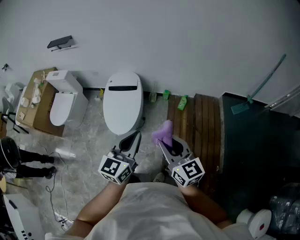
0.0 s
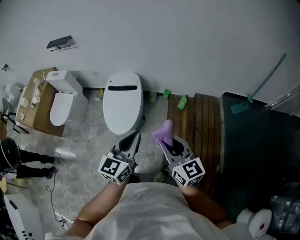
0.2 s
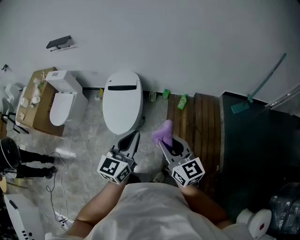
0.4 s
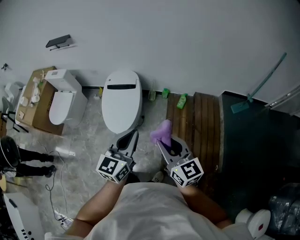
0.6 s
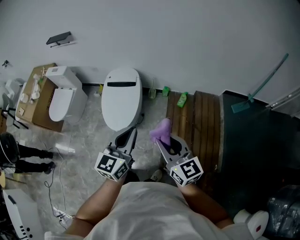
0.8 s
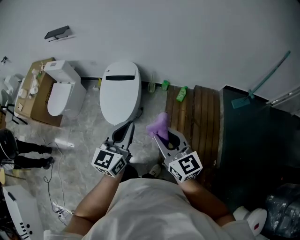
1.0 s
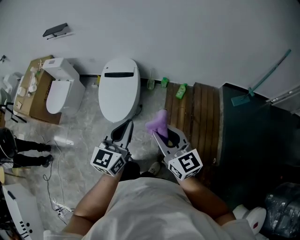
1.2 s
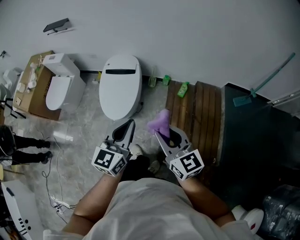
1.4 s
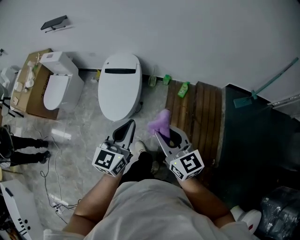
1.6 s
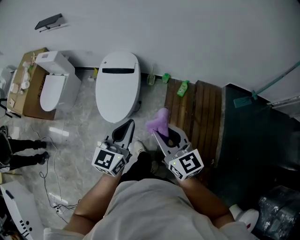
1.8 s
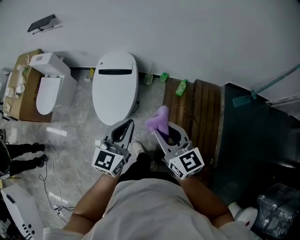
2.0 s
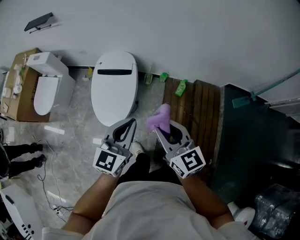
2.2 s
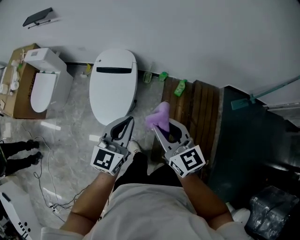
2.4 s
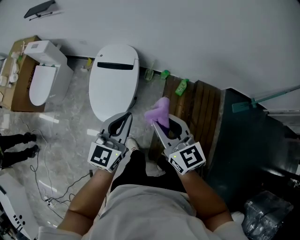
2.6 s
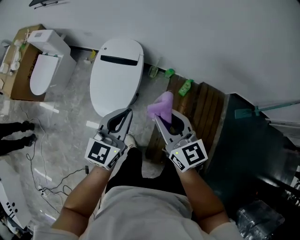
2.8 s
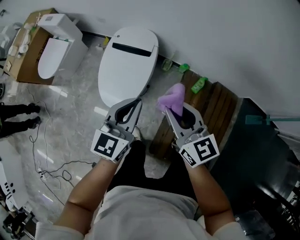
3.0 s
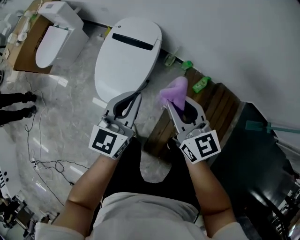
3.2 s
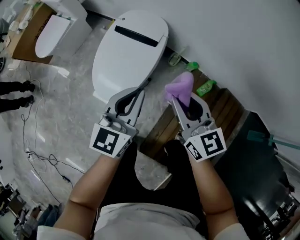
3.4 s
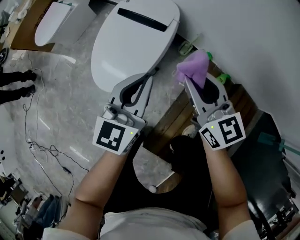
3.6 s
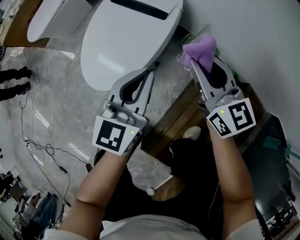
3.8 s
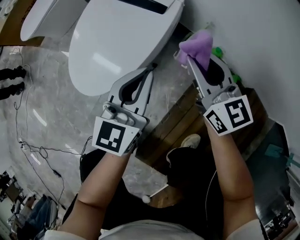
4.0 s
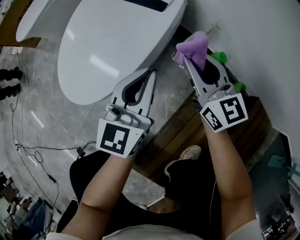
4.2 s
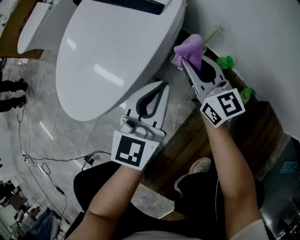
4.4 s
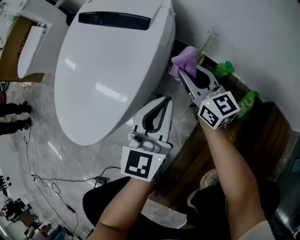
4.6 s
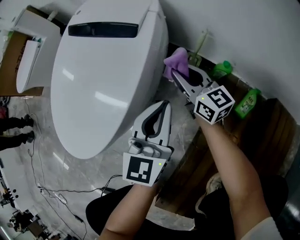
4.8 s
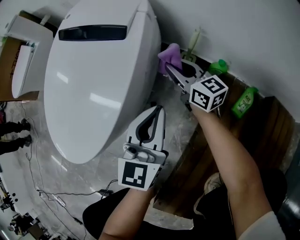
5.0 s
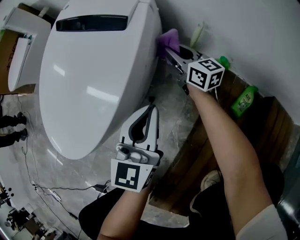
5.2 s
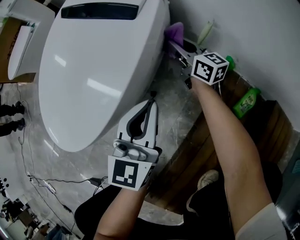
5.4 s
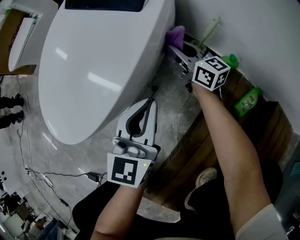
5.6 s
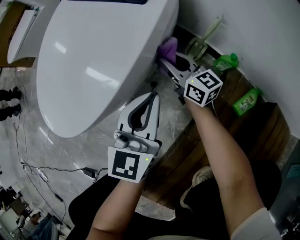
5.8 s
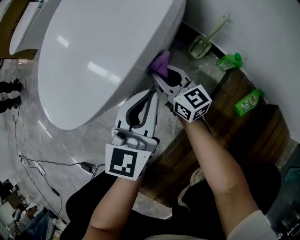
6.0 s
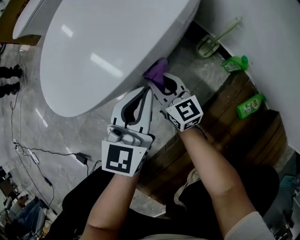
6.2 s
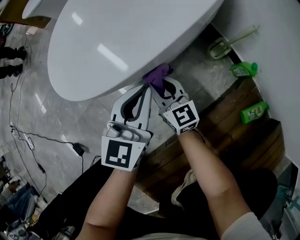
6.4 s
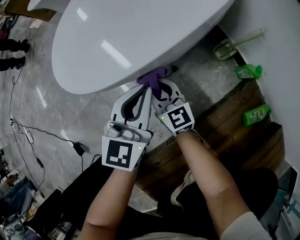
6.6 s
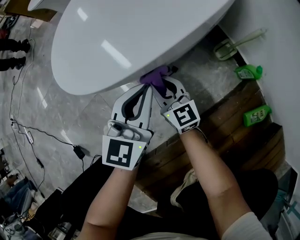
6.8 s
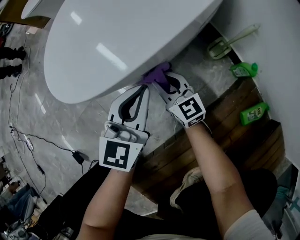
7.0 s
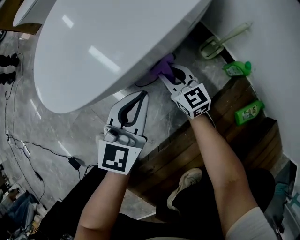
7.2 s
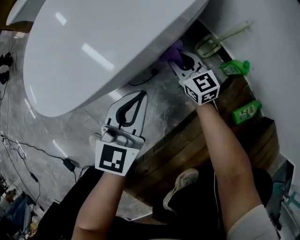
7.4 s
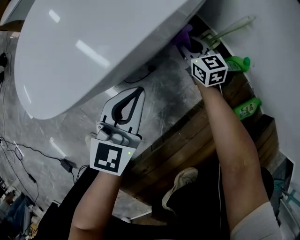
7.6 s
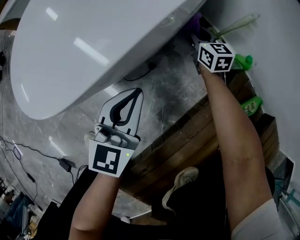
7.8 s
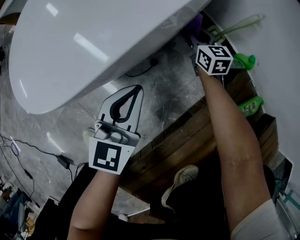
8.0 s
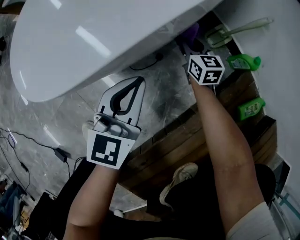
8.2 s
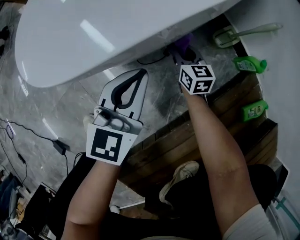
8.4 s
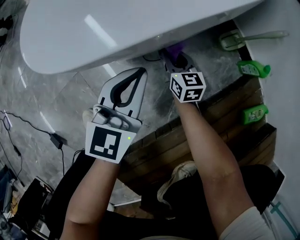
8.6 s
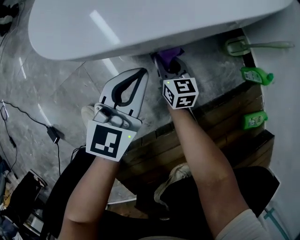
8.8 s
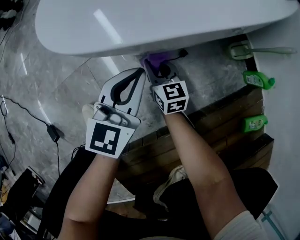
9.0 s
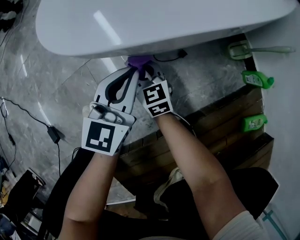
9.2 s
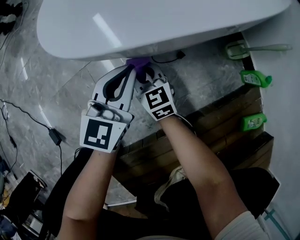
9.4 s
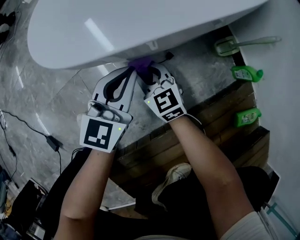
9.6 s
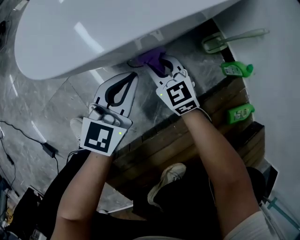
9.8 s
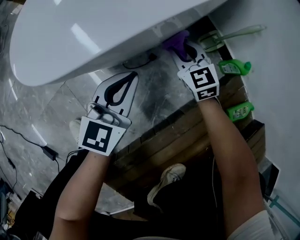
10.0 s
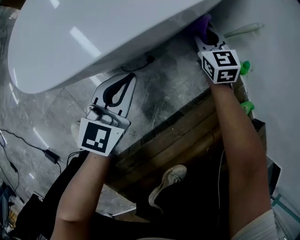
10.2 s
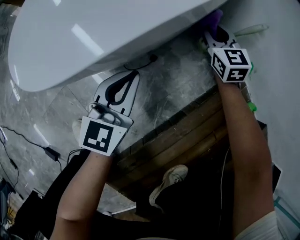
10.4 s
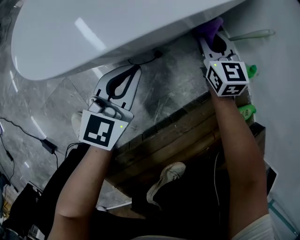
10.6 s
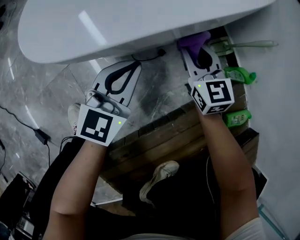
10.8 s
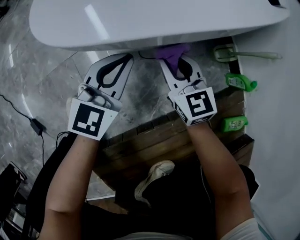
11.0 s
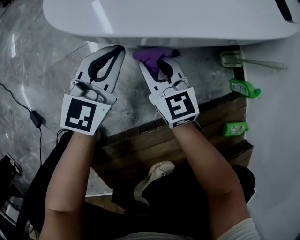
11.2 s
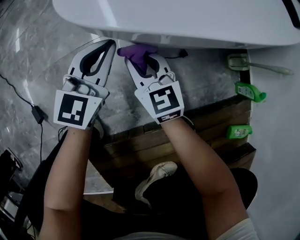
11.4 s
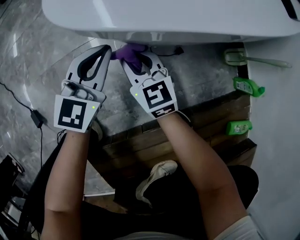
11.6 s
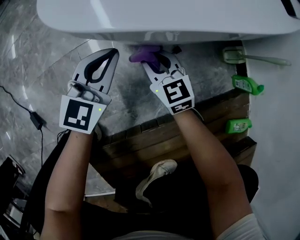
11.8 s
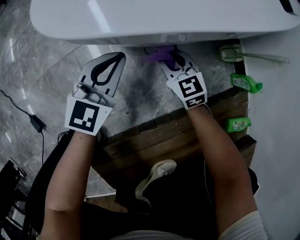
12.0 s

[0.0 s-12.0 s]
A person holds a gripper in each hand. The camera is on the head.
0.0 to 1.6 s: The left gripper moves about 5 cm.
1.6 to 3.0 s: The right gripper is displaced forward by about 20 cm. Meanwhile the left gripper heads forward and downward, covering about 20 cm.
3.0 to 4.4 s: The left gripper shifts about 40 cm downward, and rotates roughly 20 degrees. Meanwhile the right gripper travels downward and forward by some 50 cm.
4.4 to 6.0 s: The left gripper is displaced downward by about 10 cm. The right gripper travels downward and to the left by roughly 20 cm.
6.0 to 7.6 s: The left gripper goes about 10 cm downward, while the right gripper is displaced downward, to the right and forward by some 15 cm, and turns by about 20 degrees.
7.6 to 9.0 s: The right gripper moves to the left and backward, about 30 cm. Meanwhile the left gripper goes approximately 10 cm to the left.
9.0 to 10.4 s: The left gripper shifts approximately 10 cm to the right. The right gripper heads to the right, forward and upward, covering approximately 35 cm, and swivels approximately 30 degrees.
10.4 to 12.0 s: The right gripper shifts by roughly 30 cm, and rotates about 30 degrees.

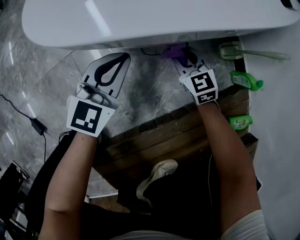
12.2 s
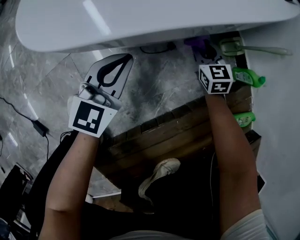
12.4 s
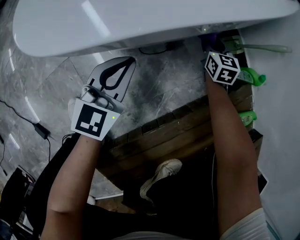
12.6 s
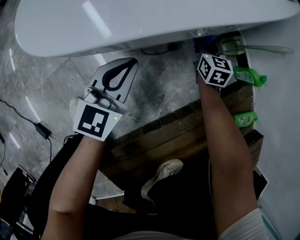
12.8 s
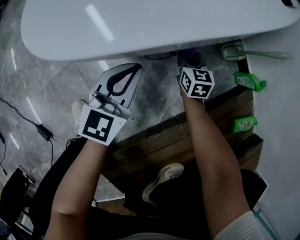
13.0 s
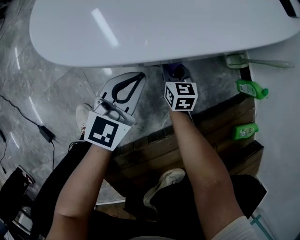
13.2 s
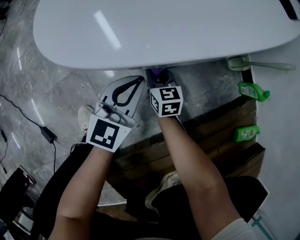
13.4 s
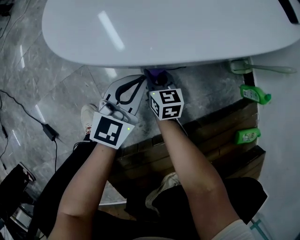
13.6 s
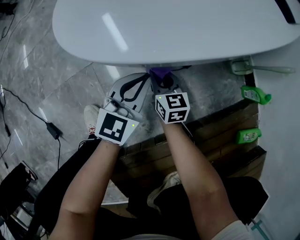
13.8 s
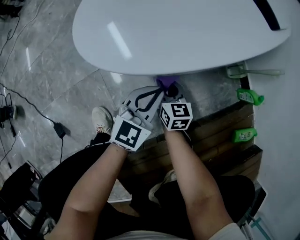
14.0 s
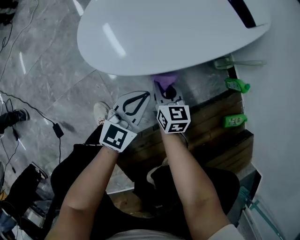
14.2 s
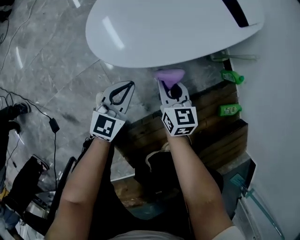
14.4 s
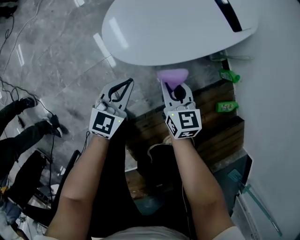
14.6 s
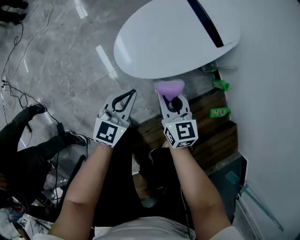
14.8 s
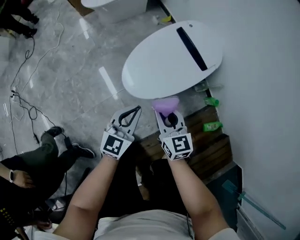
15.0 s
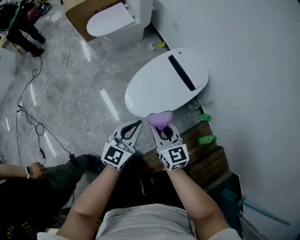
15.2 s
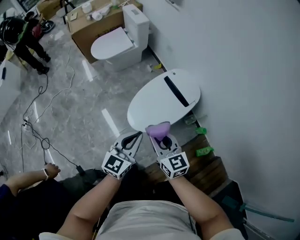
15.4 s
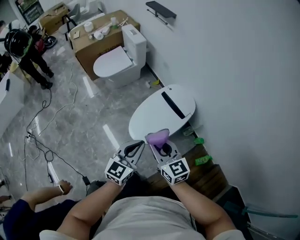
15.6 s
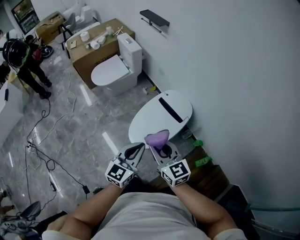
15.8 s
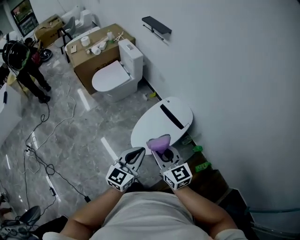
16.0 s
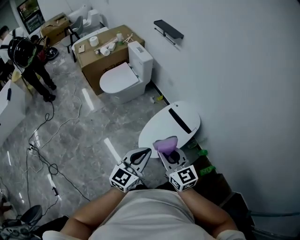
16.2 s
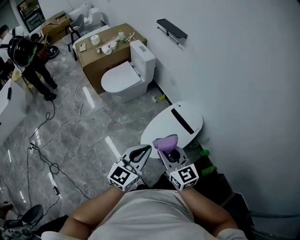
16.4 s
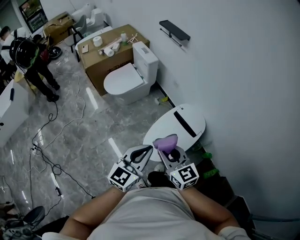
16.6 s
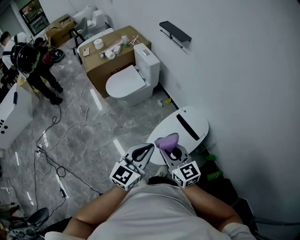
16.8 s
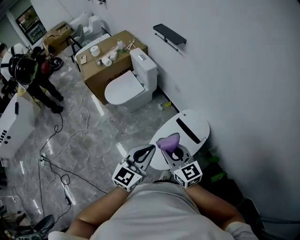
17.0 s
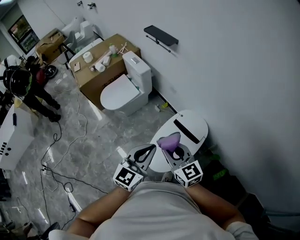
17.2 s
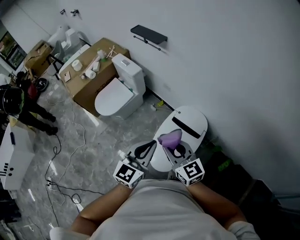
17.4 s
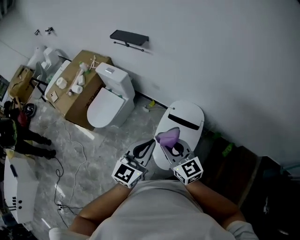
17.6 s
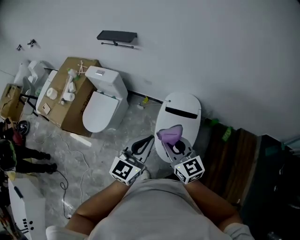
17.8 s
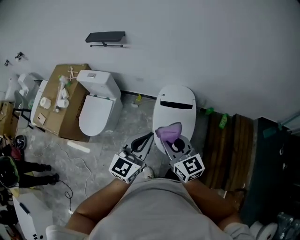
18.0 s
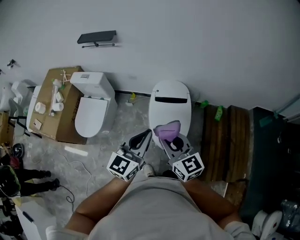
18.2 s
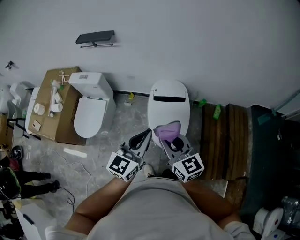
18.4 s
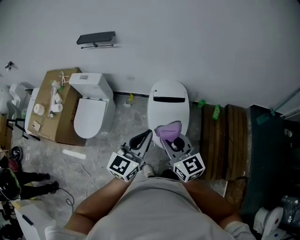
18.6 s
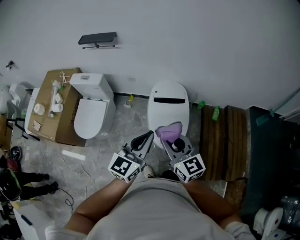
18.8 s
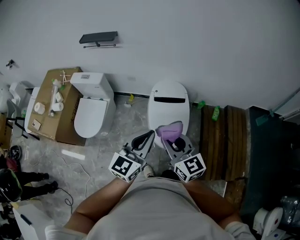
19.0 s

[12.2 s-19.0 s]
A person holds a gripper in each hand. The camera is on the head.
12.2 to 13.6 s: The right gripper heads to the left, covering roughly 10 cm, and turns by approximately 30 degrees.
13.6 to 15.0 s: Both grippers travel together upward, approximately 50 cm.
15.0 to 16.2 s: The two grippers go some 35 cm upward.
16.2 to 17.6 s: Both grippers travel together forward, roughly 20 cm. The right gripper rotates about 20 degrees. The left gripper changes its angle by approximately 20 degrees.
17.6 to 19.0 s: Both grippers move backward, some 10 cm. The left gripper changes its angle by roughly 20 degrees. Meanwhile the right gripper swivels some 30 degrees.

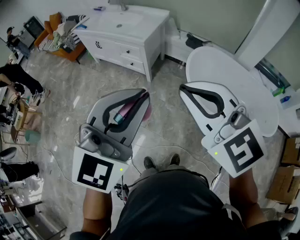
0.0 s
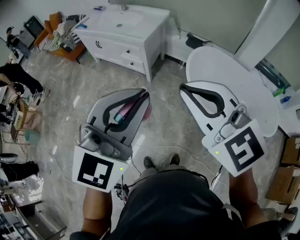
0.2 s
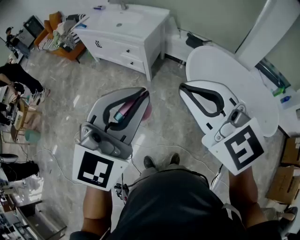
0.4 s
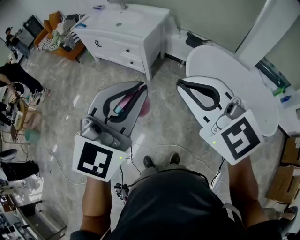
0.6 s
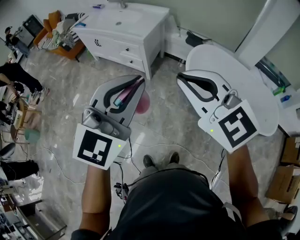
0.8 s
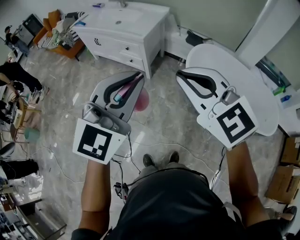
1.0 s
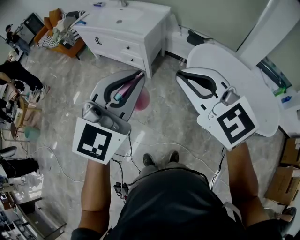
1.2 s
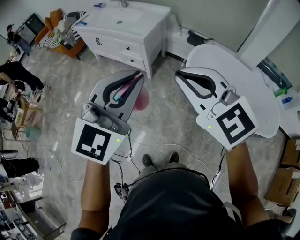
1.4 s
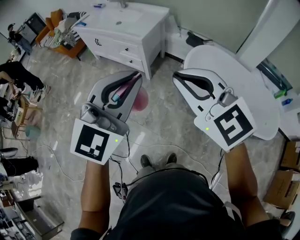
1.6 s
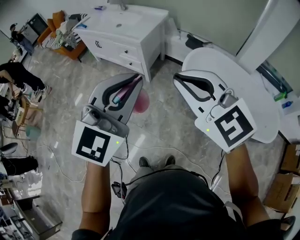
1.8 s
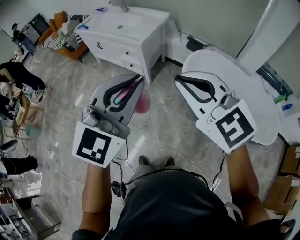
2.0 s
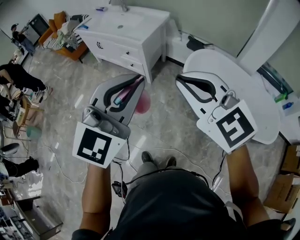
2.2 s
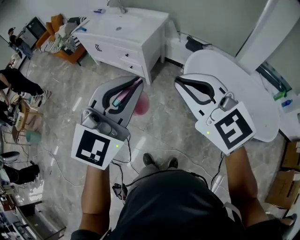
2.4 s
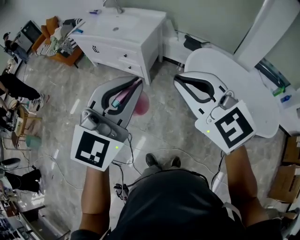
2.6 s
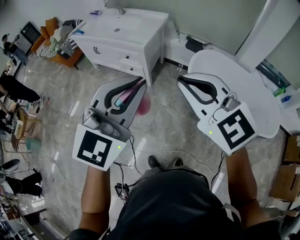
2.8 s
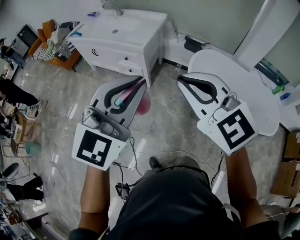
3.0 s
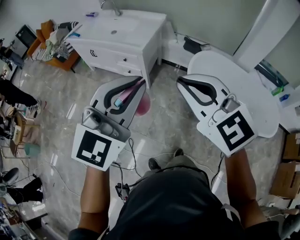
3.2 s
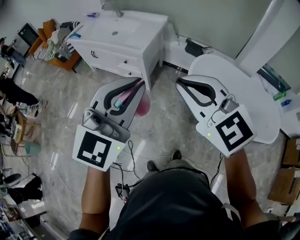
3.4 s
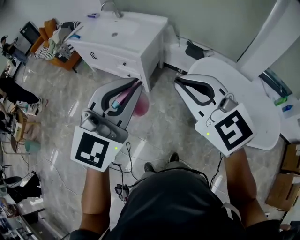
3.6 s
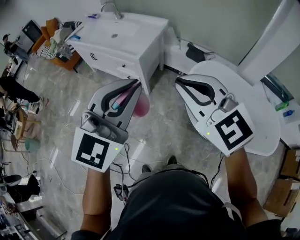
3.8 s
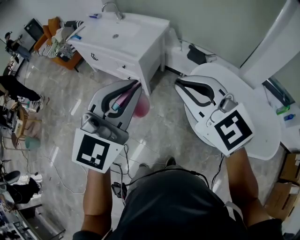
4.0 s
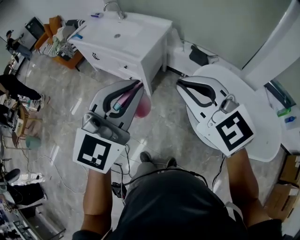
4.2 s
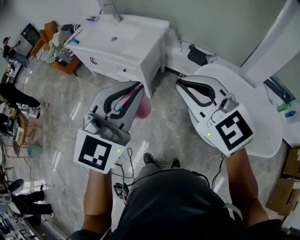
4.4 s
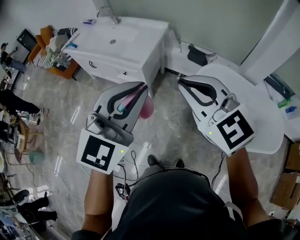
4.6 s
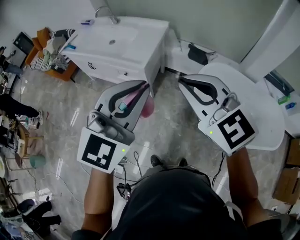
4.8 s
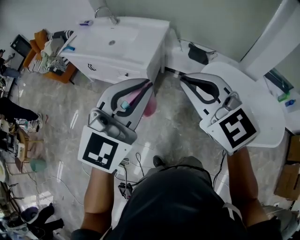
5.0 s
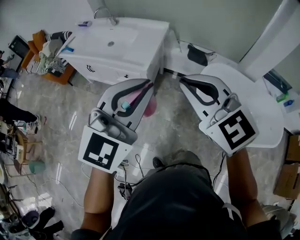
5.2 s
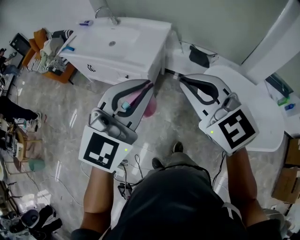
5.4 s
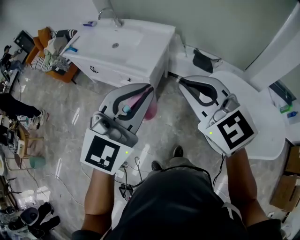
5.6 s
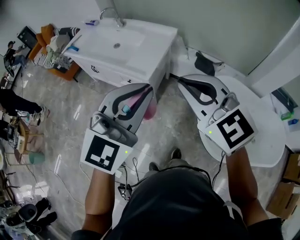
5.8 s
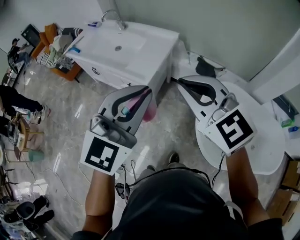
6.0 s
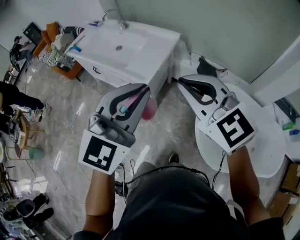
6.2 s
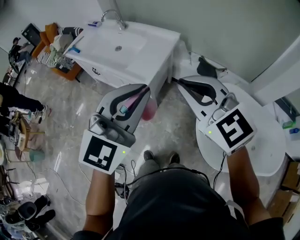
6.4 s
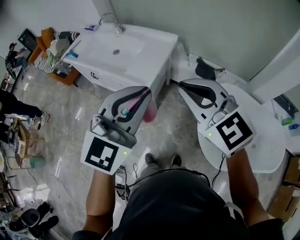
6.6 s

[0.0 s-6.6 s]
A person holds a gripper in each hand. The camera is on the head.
0.0 to 1.6 s: Both grippers travel together forward, roughly 5 cm.
1.6 to 3.2 s: The grippers both shift forward and to the left by approximately 10 cm.
3.2 to 5.0 s: Both grippers move forward, about 20 cm.
5.0 to 6.6 s: The grippers both shift forward by approximately 15 cm.
